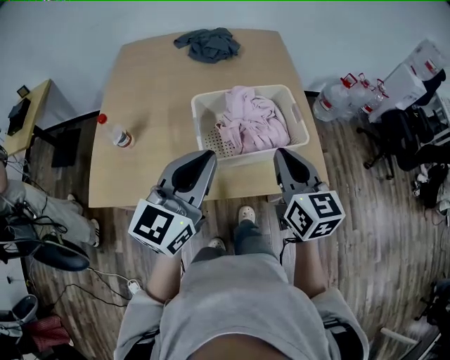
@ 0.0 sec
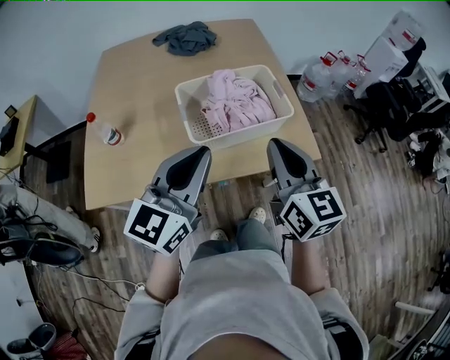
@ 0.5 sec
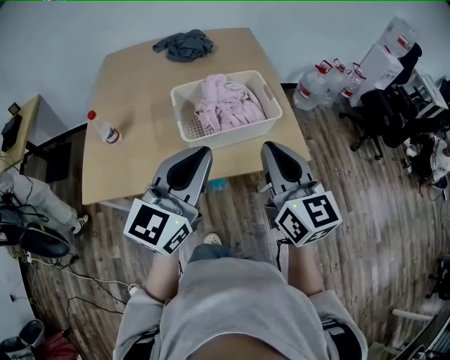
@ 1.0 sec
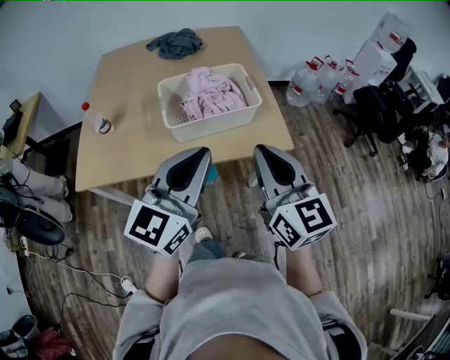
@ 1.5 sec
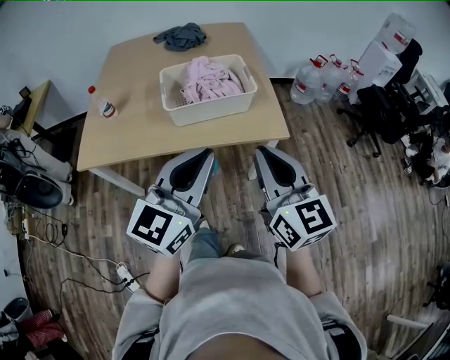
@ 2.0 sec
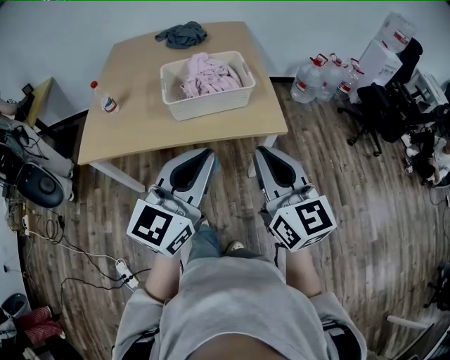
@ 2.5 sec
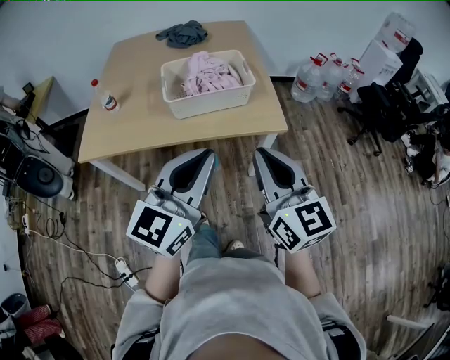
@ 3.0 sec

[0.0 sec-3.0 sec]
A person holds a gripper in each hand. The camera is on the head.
0.0 sec to 1.5 sec: The left gripper is displaced backward and to the right by about 20 cm. The right gripper shifts roughly 20 cm backward, to the right and upward.
1.5 sec to 3.0 sec: Both grippers travel together backward and to the right, about 10 cm.

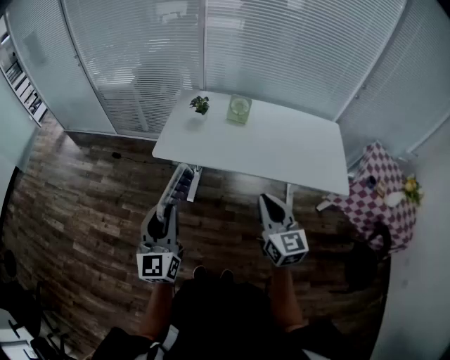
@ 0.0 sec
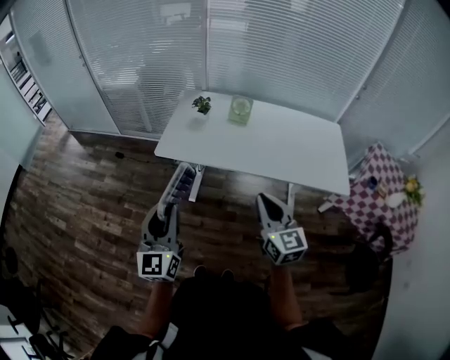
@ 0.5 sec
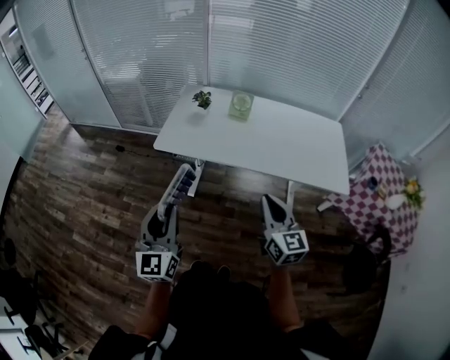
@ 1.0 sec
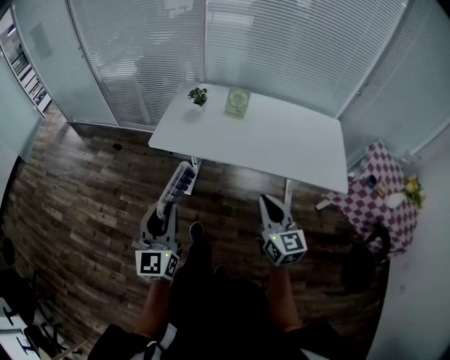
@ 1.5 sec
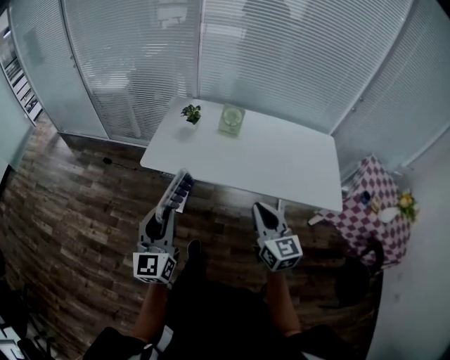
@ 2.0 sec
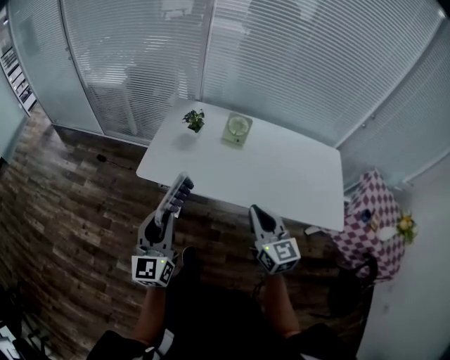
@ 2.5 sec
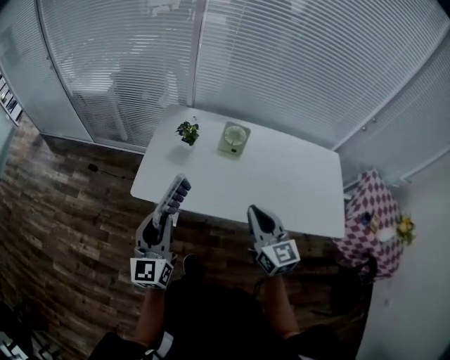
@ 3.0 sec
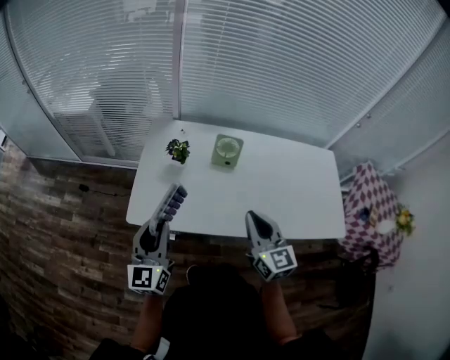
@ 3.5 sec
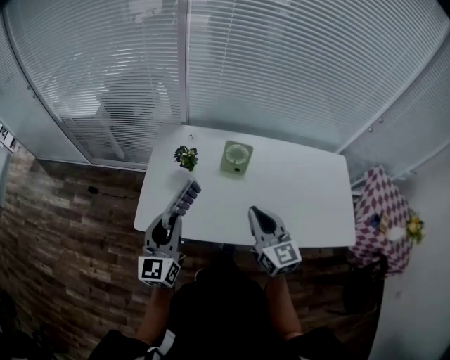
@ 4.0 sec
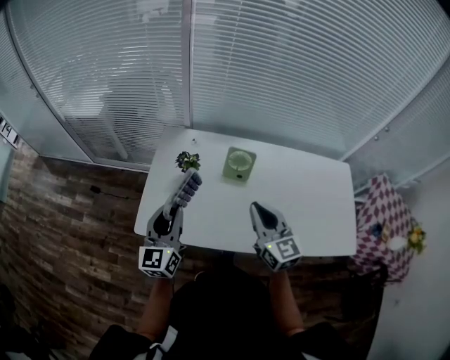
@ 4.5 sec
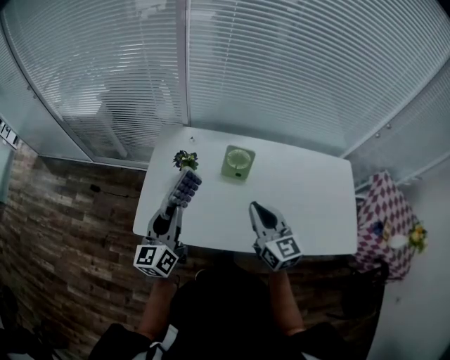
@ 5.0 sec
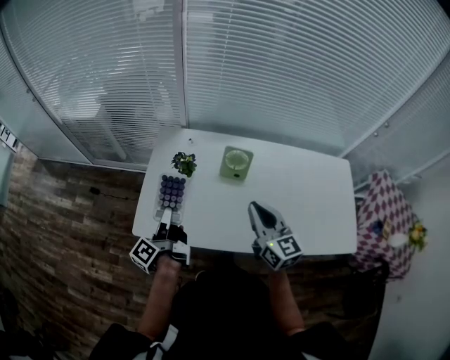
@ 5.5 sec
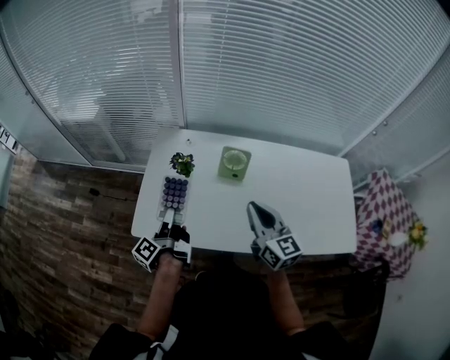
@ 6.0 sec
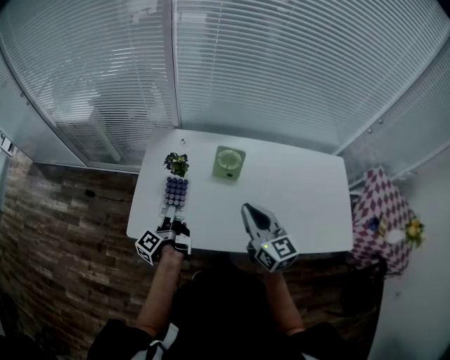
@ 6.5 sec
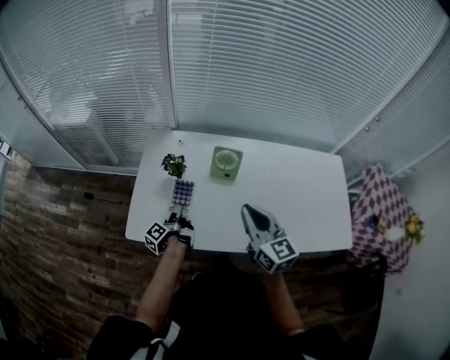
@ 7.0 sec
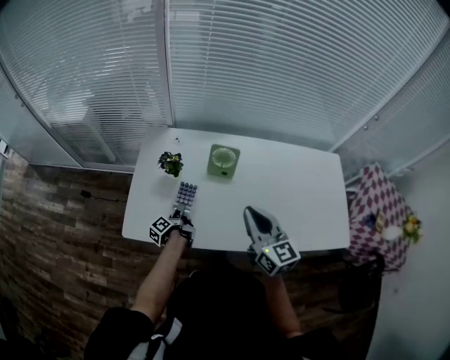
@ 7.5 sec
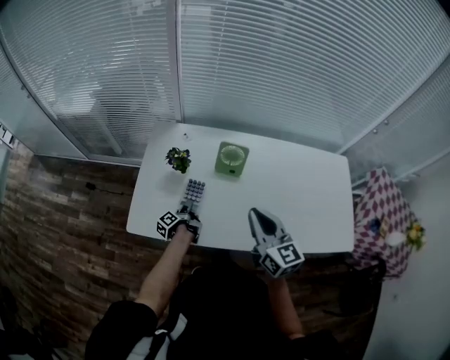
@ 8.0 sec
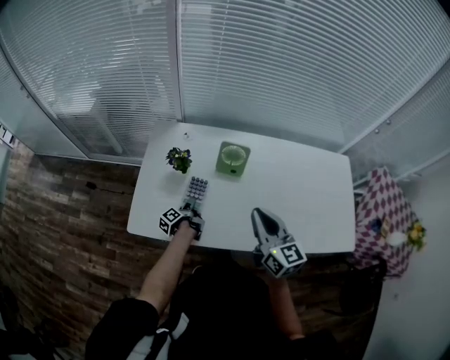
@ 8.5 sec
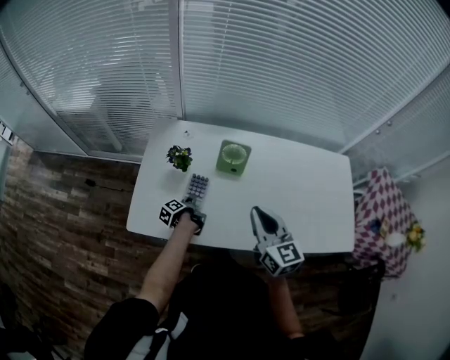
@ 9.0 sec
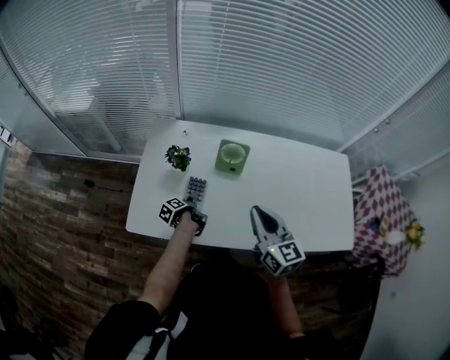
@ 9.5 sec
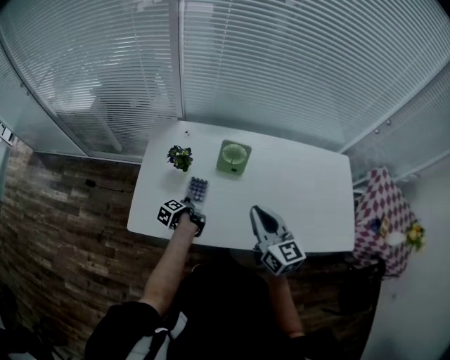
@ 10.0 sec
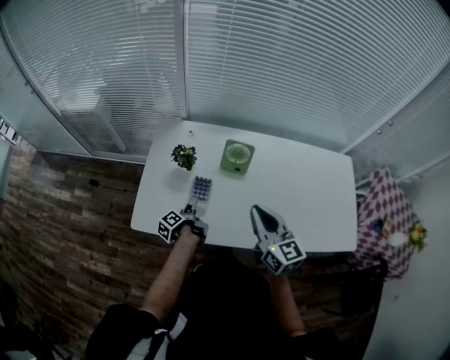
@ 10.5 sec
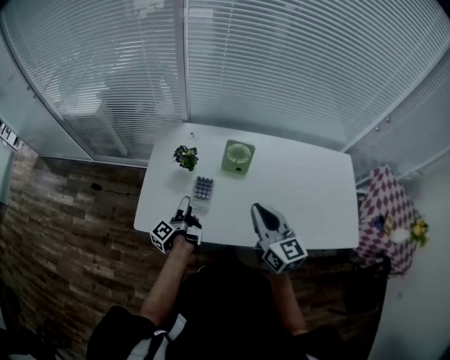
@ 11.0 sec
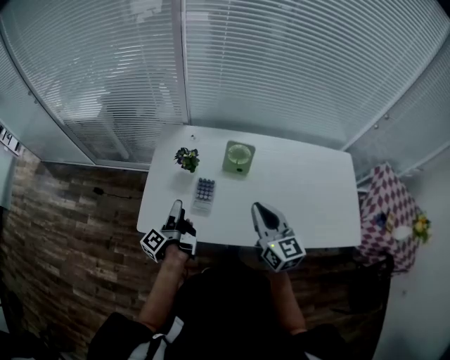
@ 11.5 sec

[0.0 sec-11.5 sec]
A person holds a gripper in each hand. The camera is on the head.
0.0 sec to 2.0 sec: The left gripper changes place by some 5 cm; the right gripper shifts by approximately 5 cm.
2.0 sec to 4.0 sec: Both grippers move forward, some 30 cm.
4.0 sec to 6.0 sec: The left gripper shifts approximately 10 cm downward and forward, and rolls counterclockwise, seen from behind, by approximately 80 degrees.
6.0 sec to 7.5 sec: The left gripper heads downward, covering roughly 20 cm.
7.5 sec to 9.5 sec: The left gripper swivels roughly 20 degrees, and opens up.
9.5 sec to 11.5 sec: The left gripper shifts roughly 20 cm upward, and tilts its fingers about 40 degrees upward.

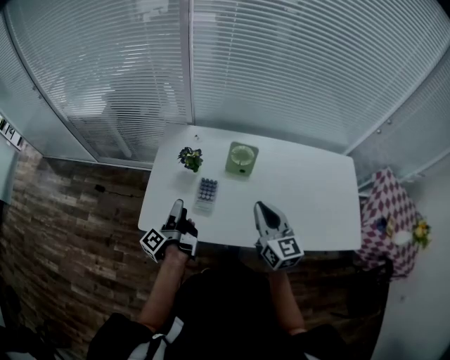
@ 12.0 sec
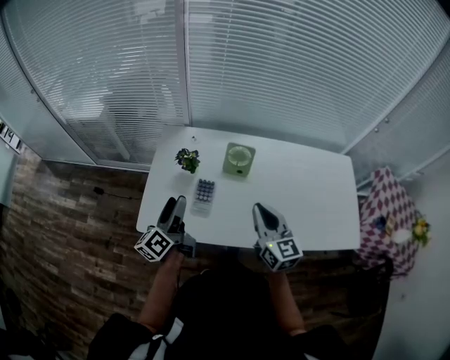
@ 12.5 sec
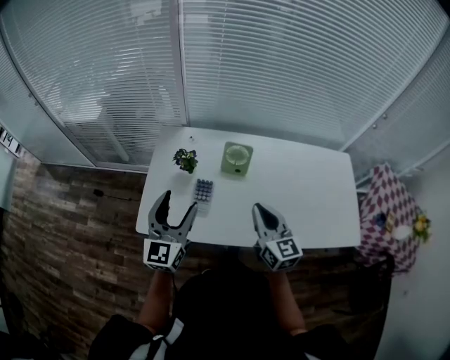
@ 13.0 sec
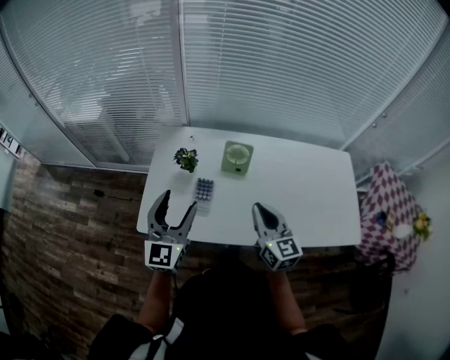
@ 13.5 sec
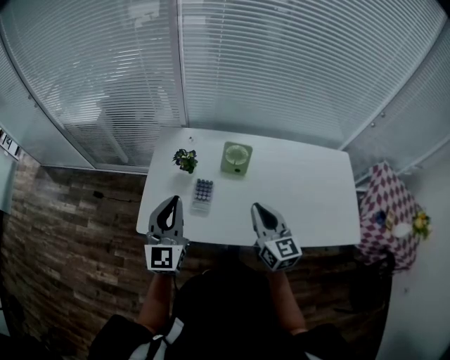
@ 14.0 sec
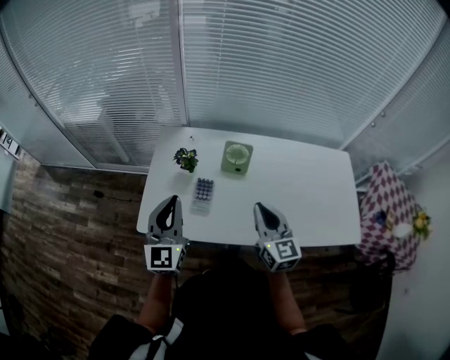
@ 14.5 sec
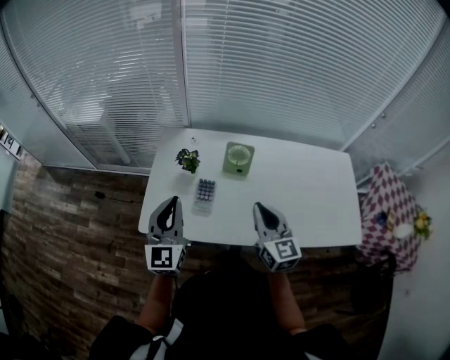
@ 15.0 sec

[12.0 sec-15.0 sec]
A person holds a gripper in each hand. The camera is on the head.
12.0 sec to 13.5 sec: The left gripper goes about 15 cm upward, and twists some 100 degrees clockwise, seen from behind.
13.5 sec to 15.0 sec: The left gripper closes up.

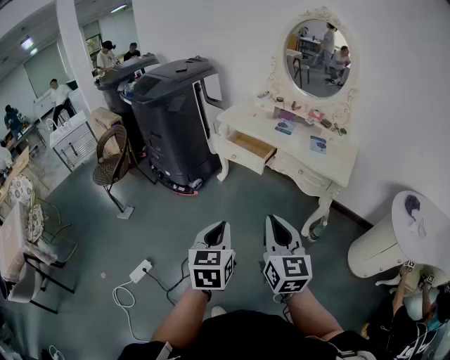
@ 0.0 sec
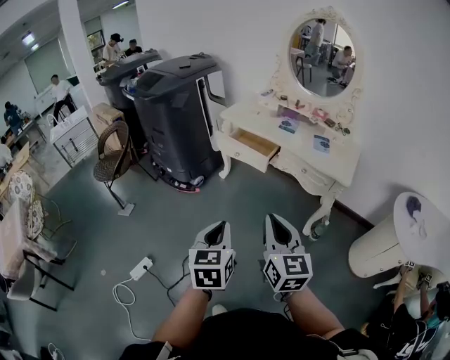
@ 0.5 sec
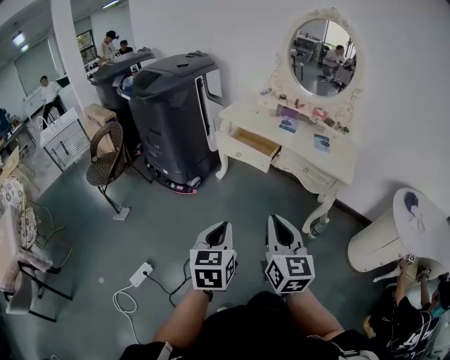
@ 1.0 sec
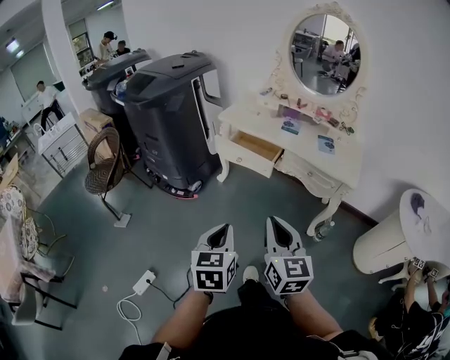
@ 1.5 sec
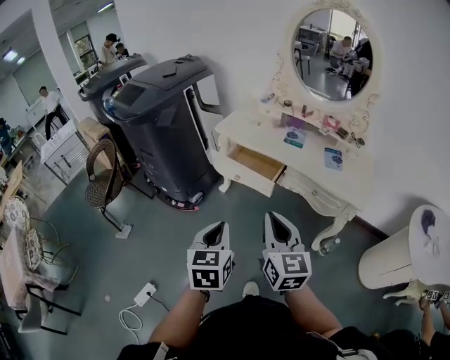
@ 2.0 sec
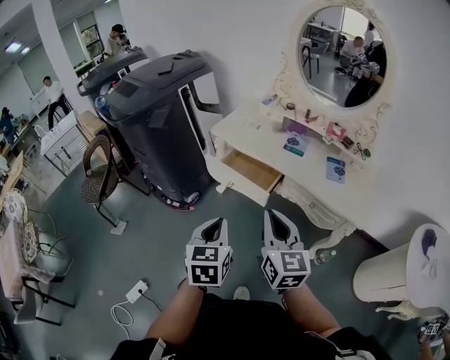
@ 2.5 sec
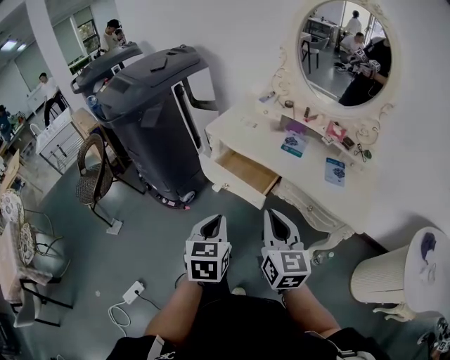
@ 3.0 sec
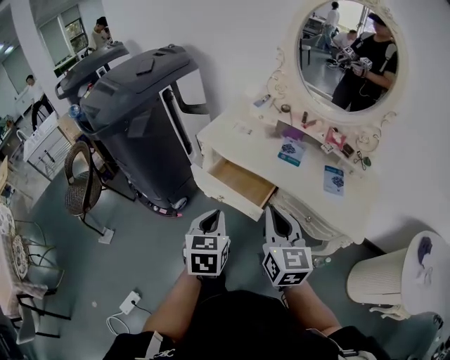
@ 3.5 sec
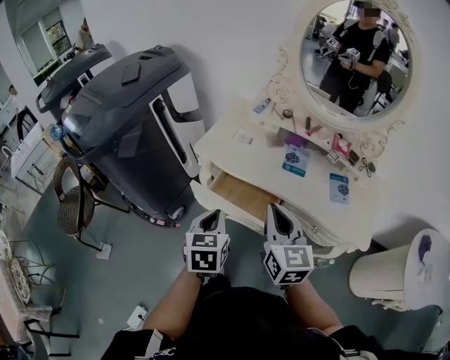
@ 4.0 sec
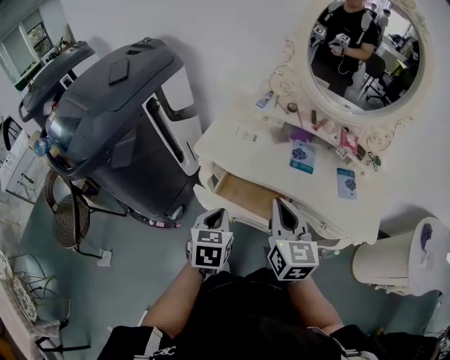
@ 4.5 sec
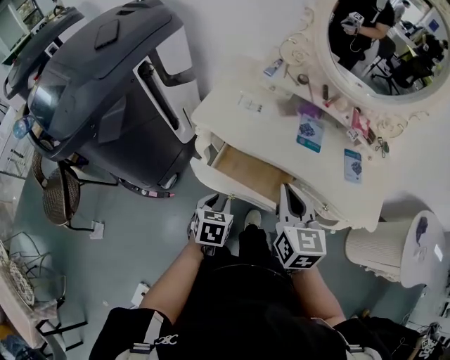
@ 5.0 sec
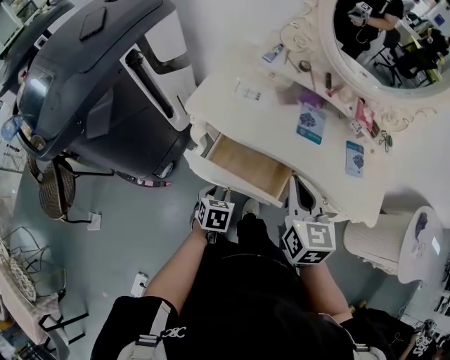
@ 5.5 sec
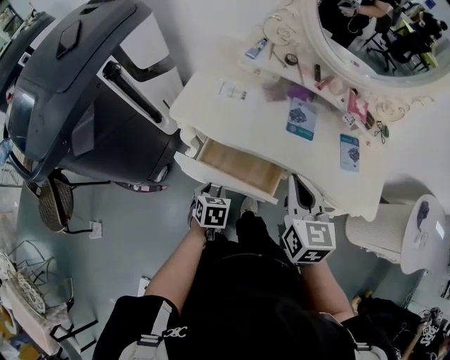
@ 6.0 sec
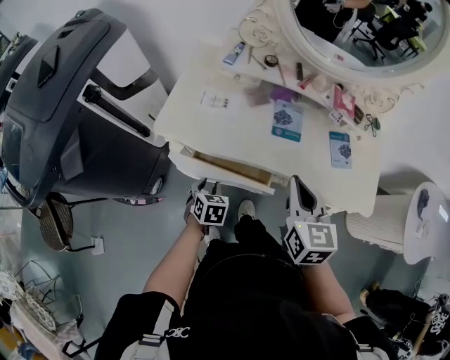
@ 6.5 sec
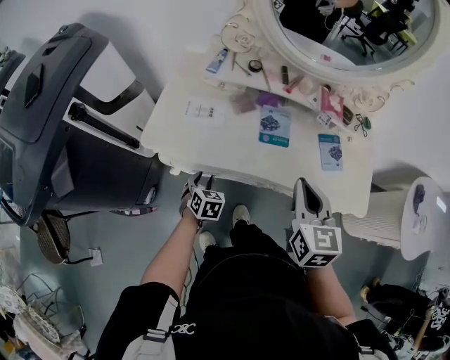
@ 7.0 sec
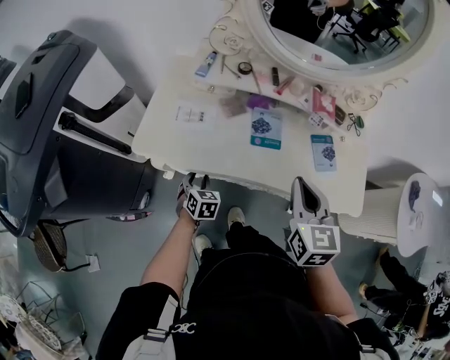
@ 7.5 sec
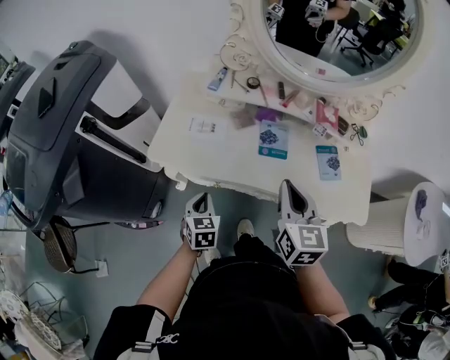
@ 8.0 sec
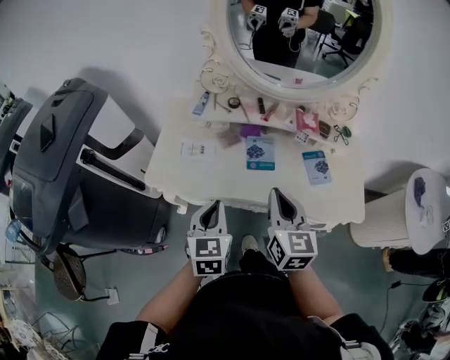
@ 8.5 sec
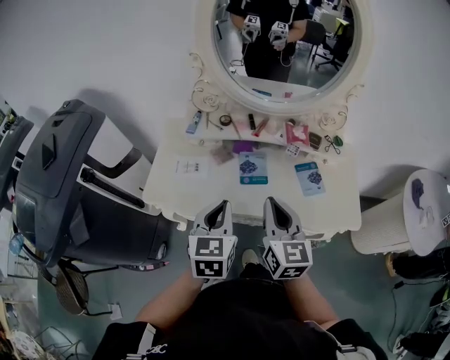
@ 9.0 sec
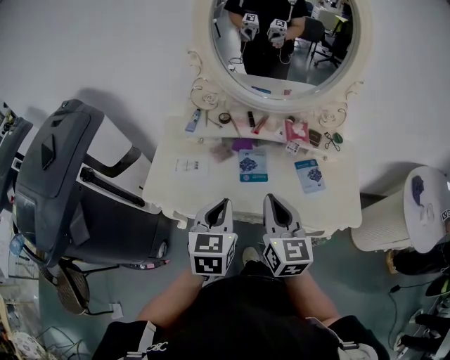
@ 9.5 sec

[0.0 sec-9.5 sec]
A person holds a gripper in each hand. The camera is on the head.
0.0 sec to 2.0 sec: The two grippers go approximately 20 cm forward.
2.0 sec to 4.0 sec: Both grippers travel together forward, approximately 30 cm.
4.0 sec to 5.5 sec: The right gripper is displaced forward and downward by about 10 cm. Meanwhile the left gripper moves downward, some 25 cm, turns by approximately 30 degrees, and opens up.
5.5 sec to 7.5 sec: The right gripper is displaced to the right and forward by about 15 cm. Meanwhile the left gripper goes approximately 15 cm forward, and turns by approximately 20 degrees.
7.5 sec to 9.5 sec: The left gripper is displaced upward by some 30 cm, rotates about 30 degrees, and closes its fingers.
